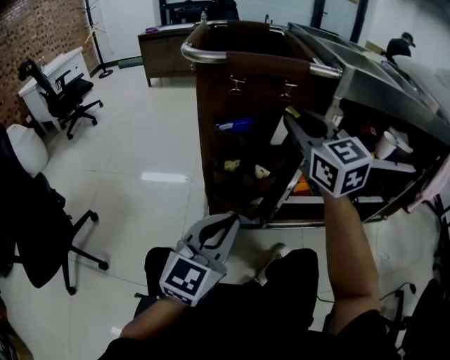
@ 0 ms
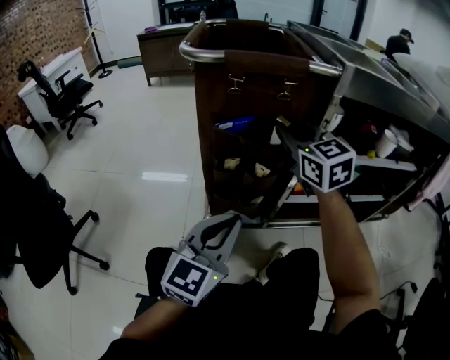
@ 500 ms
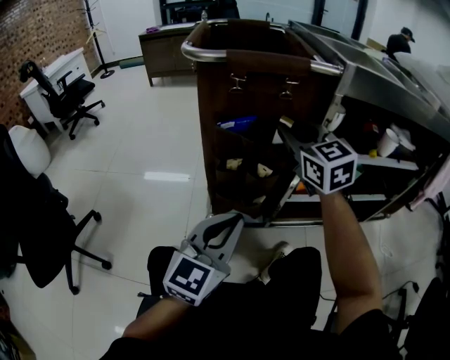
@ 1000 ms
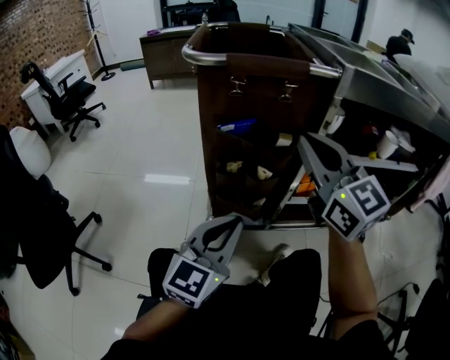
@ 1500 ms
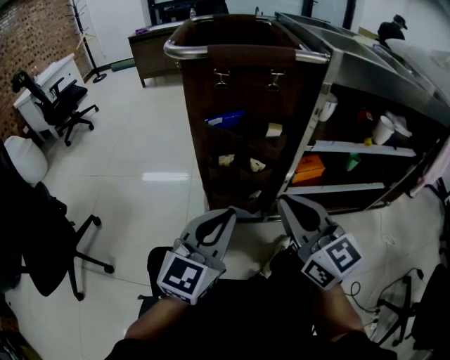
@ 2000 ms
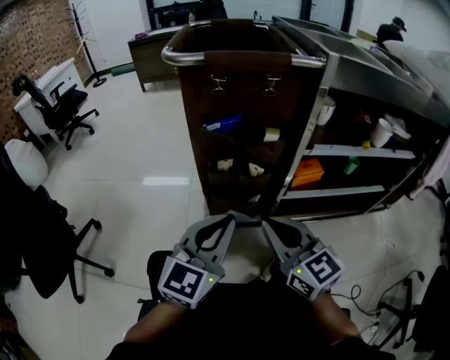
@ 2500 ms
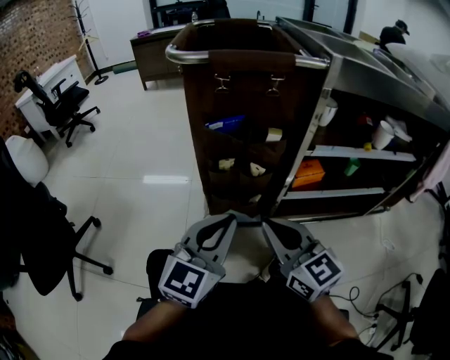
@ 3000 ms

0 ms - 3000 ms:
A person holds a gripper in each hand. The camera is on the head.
0 ms - 1500 ms: The right gripper heads backward, covering approximately 10 cm.
1500 ms - 3000 ms: The right gripper is displaced downward and backward by about 20 cm.

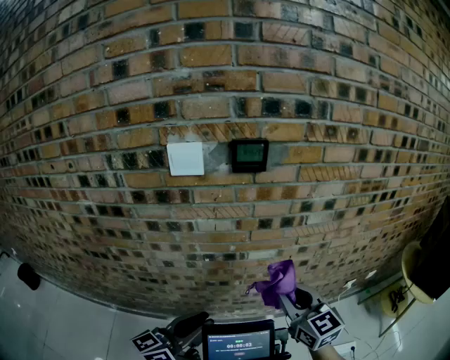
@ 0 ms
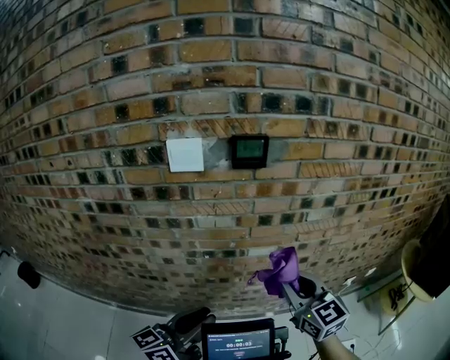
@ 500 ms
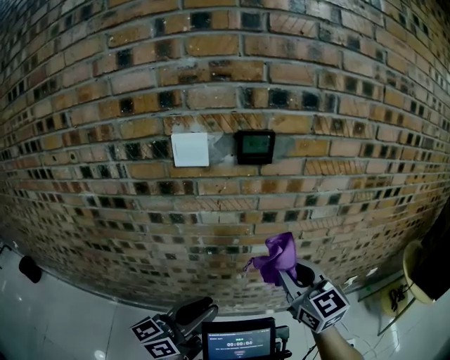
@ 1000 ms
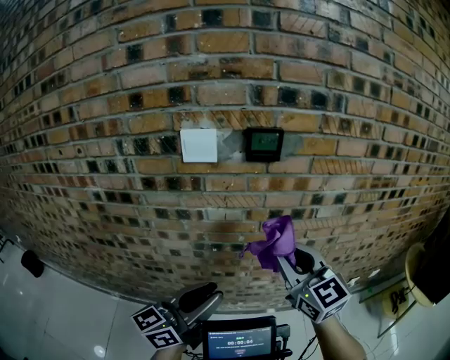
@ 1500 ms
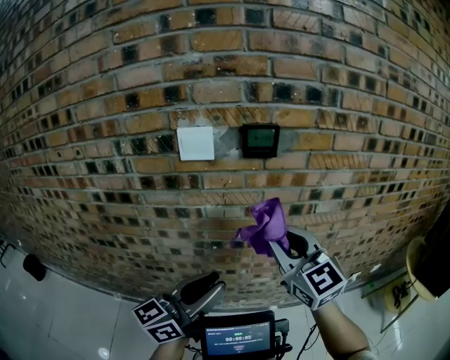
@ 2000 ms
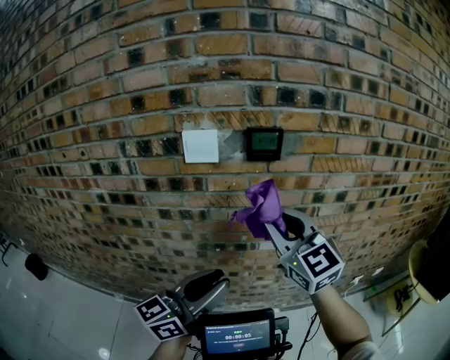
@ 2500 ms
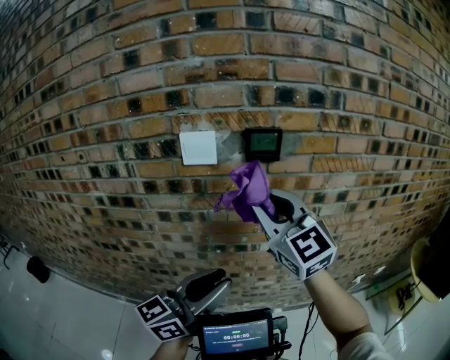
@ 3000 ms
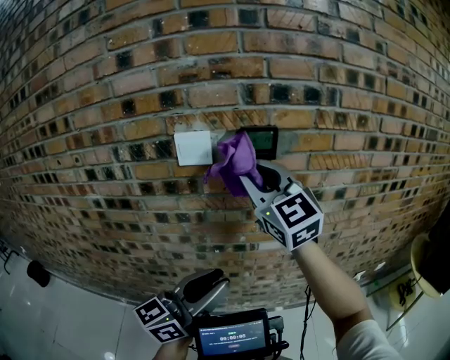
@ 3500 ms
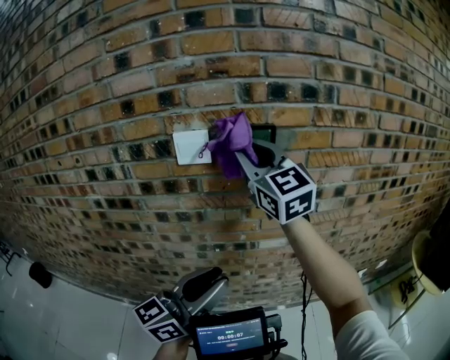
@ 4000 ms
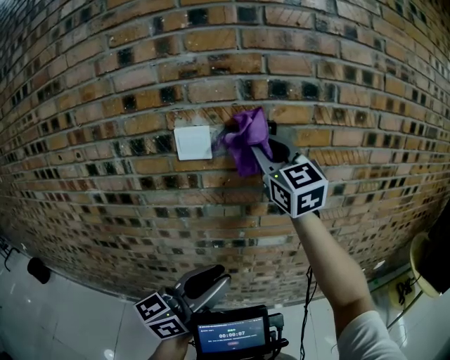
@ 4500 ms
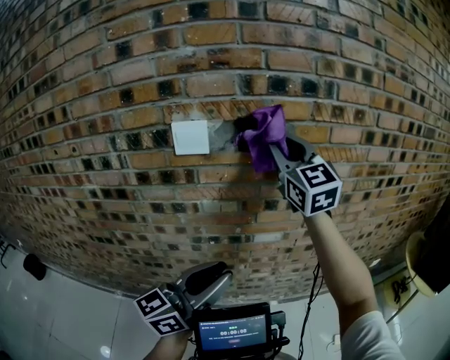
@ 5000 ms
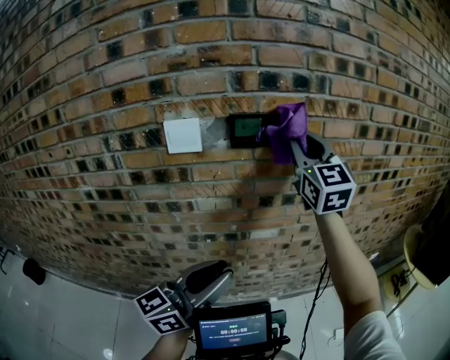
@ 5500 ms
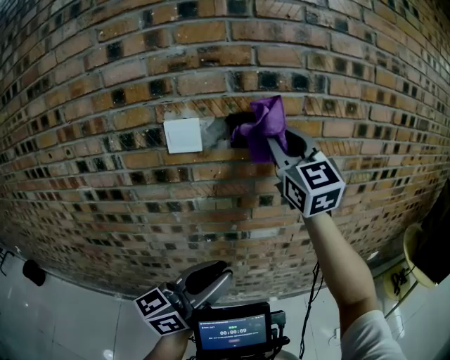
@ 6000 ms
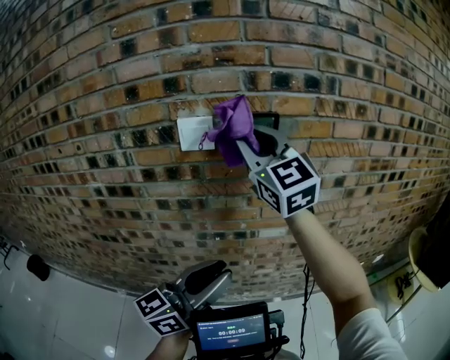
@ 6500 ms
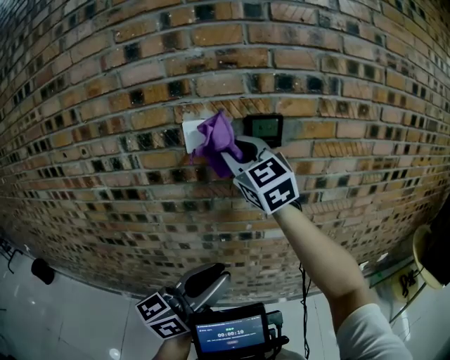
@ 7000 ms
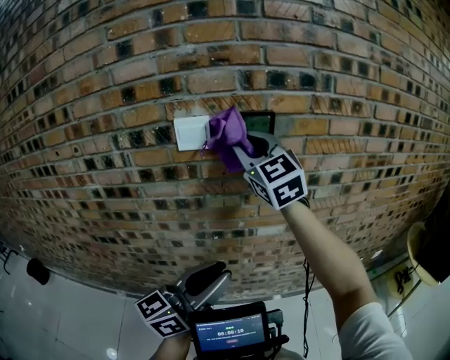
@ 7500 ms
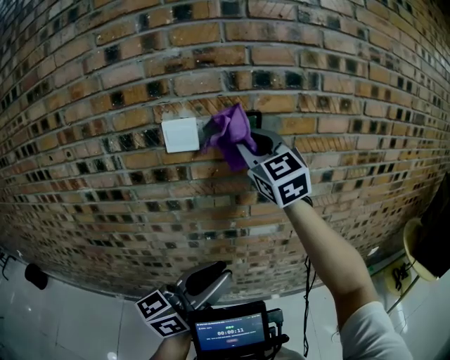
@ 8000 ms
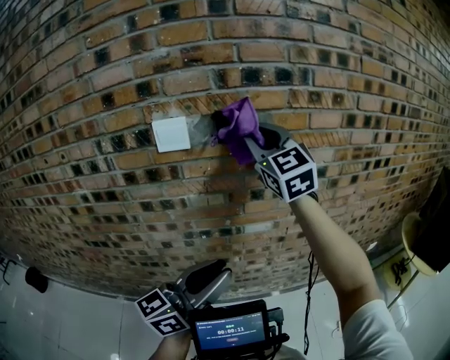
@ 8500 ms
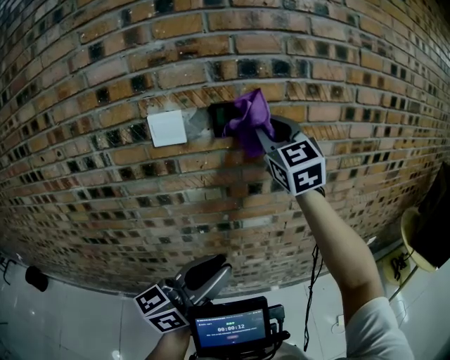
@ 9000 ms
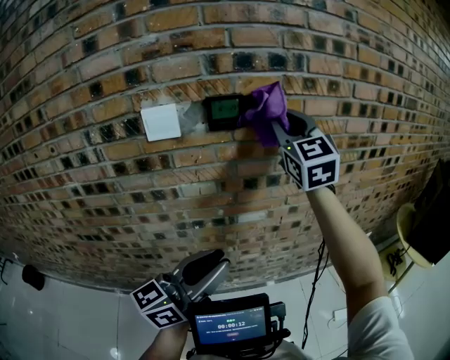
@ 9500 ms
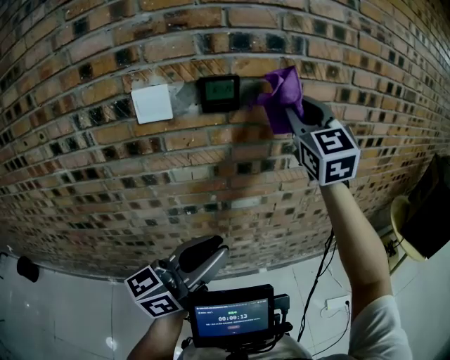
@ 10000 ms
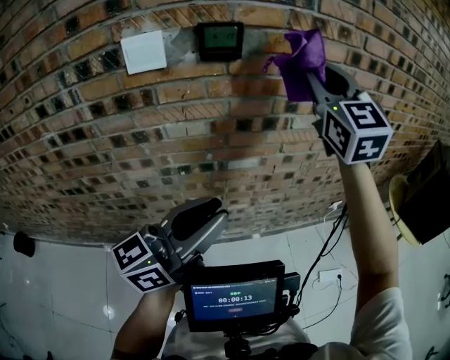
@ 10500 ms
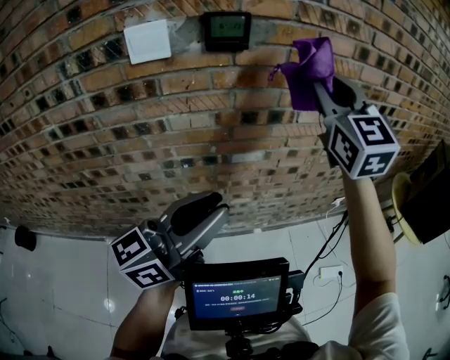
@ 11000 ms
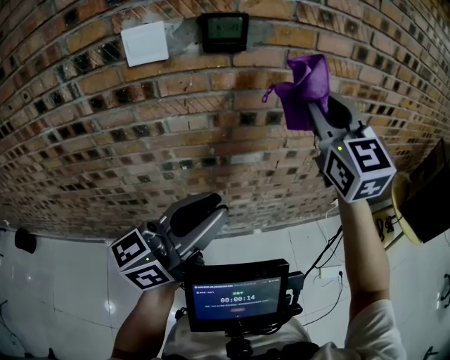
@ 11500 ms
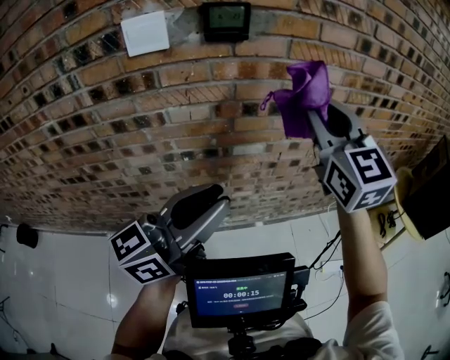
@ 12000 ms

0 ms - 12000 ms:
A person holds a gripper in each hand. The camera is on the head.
0 ms - 2000 ms: The right gripper is displaced upward and to the left by roughly 15 cm; the left gripper is displaced upward by about 5 cm.
2000 ms - 4000 ms: The right gripper goes some 20 cm upward, forward and to the left.
4000 ms - 6000 ms: The right gripper is displaced to the right by approximately 10 cm.
6000 ms - 8000 ms: The right gripper moves to the left, about 5 cm.
8000 ms - 10000 ms: The right gripper heads to the right, covering roughly 15 cm.
10000 ms - 12000 ms: The right gripper shifts some 10 cm downward and backward.

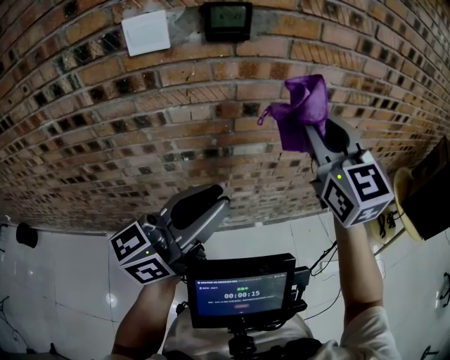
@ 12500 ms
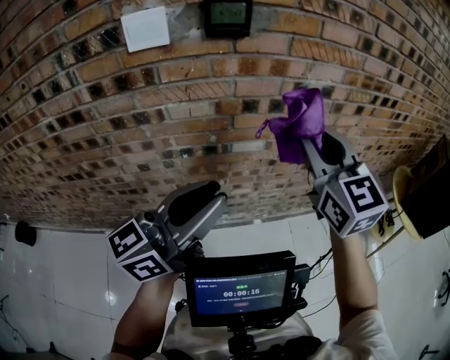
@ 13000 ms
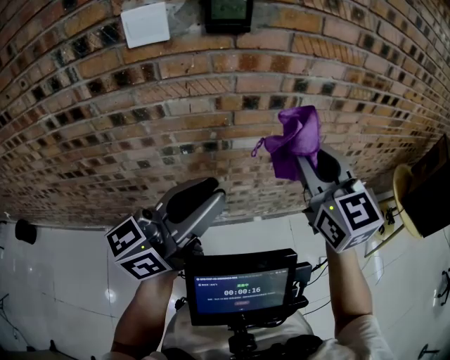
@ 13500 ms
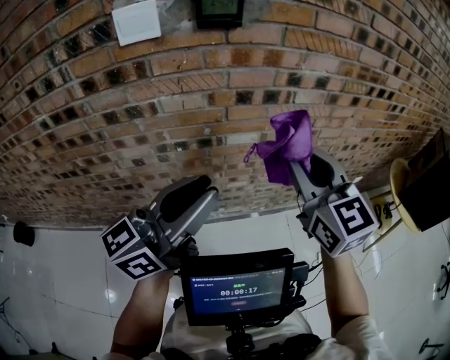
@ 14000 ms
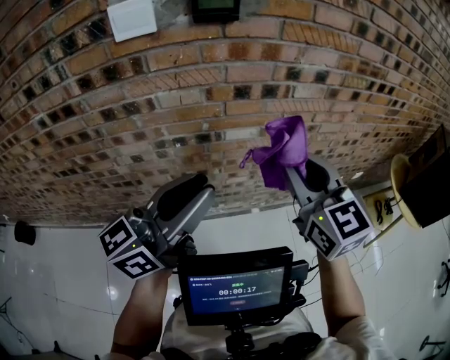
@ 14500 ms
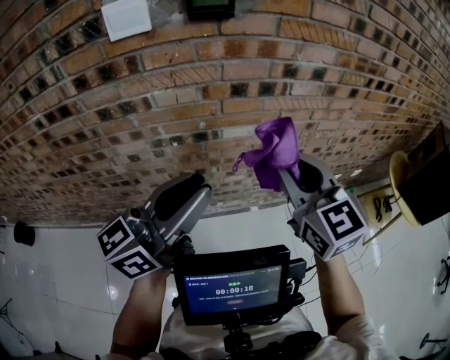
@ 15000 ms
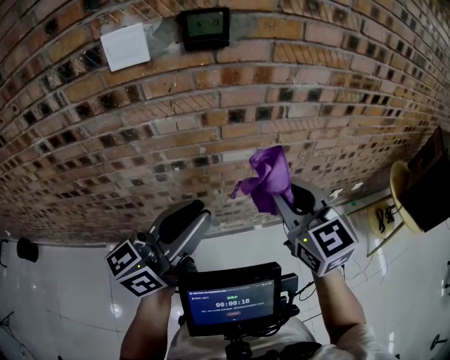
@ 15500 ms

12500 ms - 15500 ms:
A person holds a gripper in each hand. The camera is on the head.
12500 ms - 14000 ms: The right gripper heads downward and backward, covering roughly 10 cm.
14000 ms - 15500 ms: The grippers stay close to where they were, moving slightly.

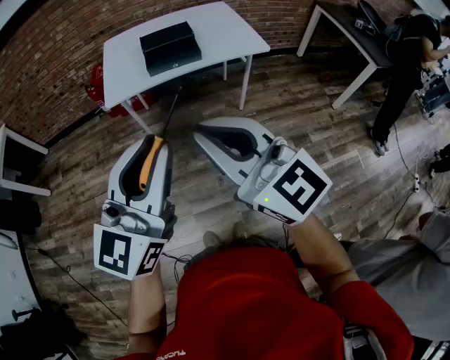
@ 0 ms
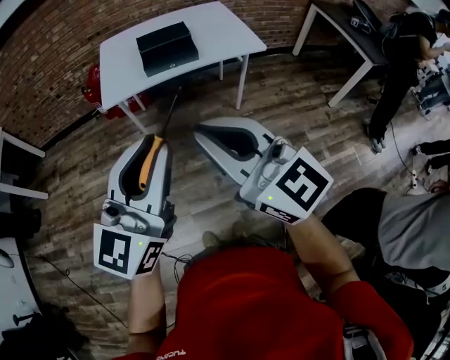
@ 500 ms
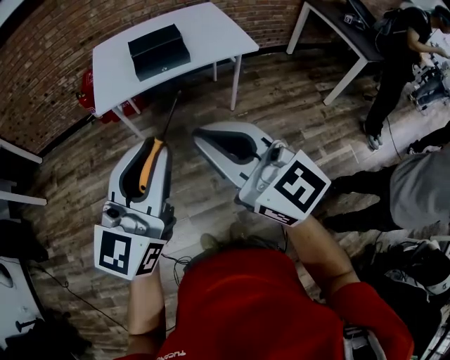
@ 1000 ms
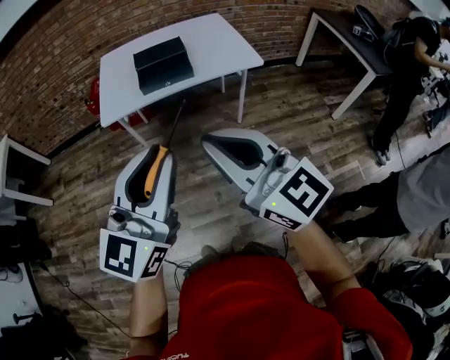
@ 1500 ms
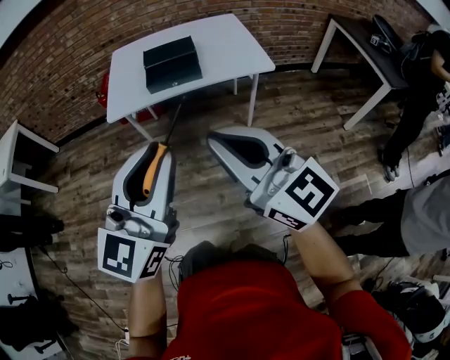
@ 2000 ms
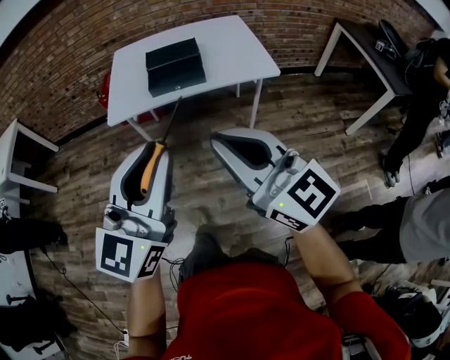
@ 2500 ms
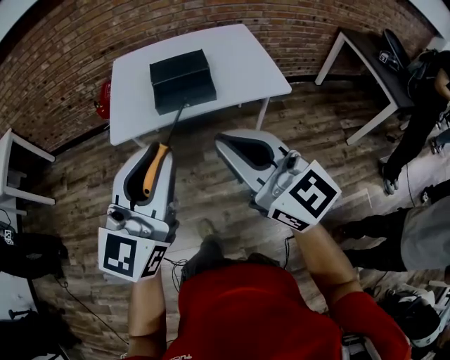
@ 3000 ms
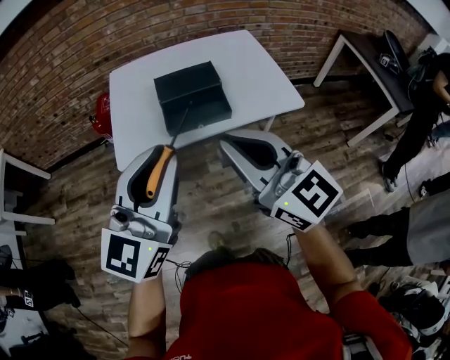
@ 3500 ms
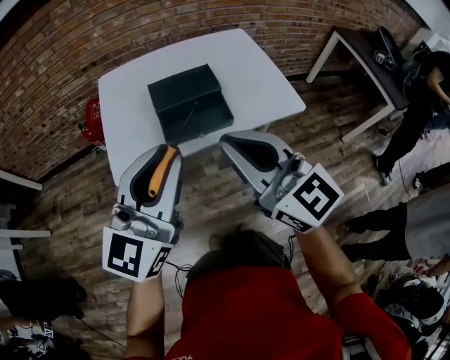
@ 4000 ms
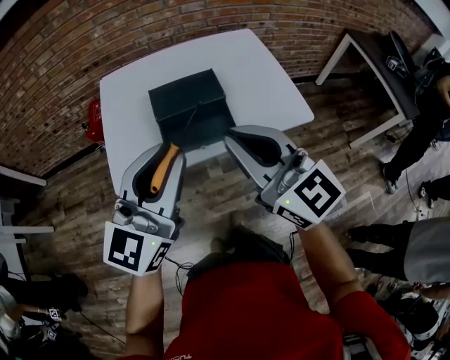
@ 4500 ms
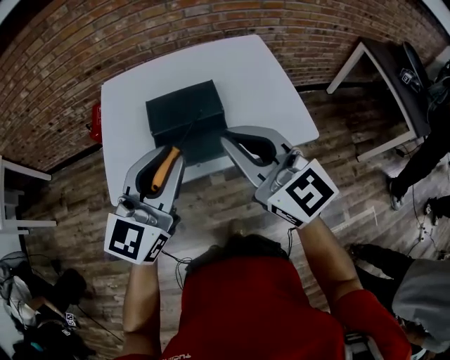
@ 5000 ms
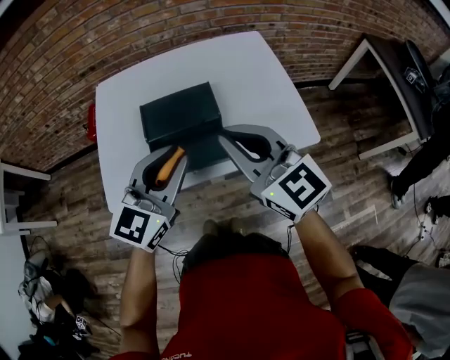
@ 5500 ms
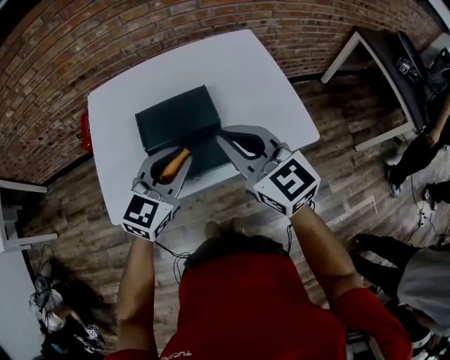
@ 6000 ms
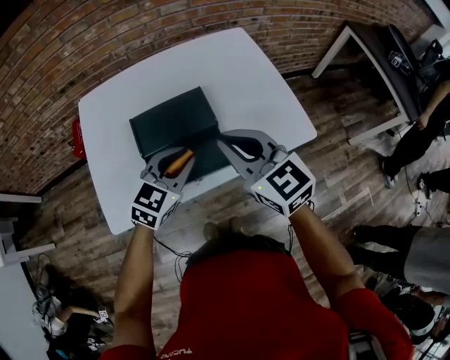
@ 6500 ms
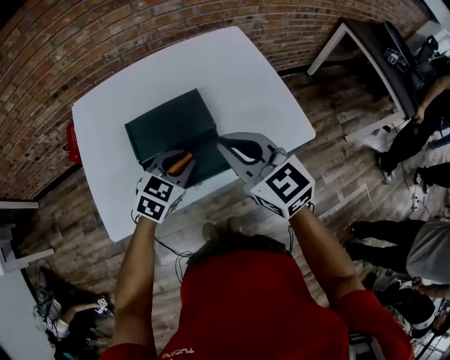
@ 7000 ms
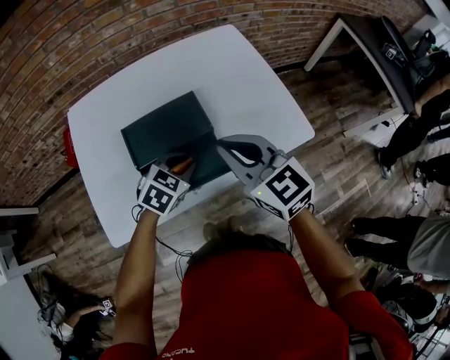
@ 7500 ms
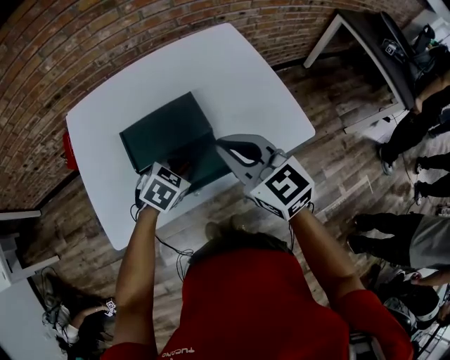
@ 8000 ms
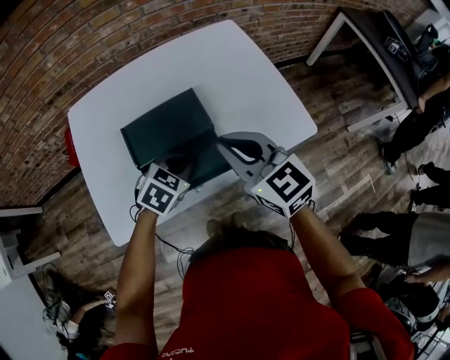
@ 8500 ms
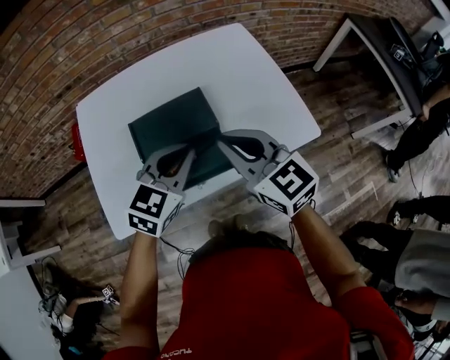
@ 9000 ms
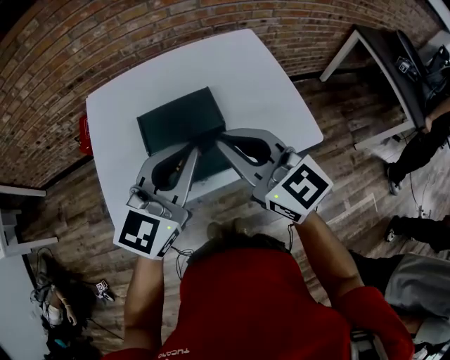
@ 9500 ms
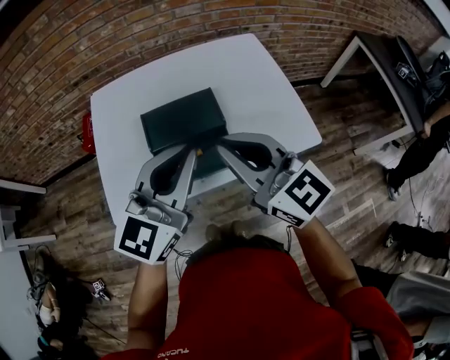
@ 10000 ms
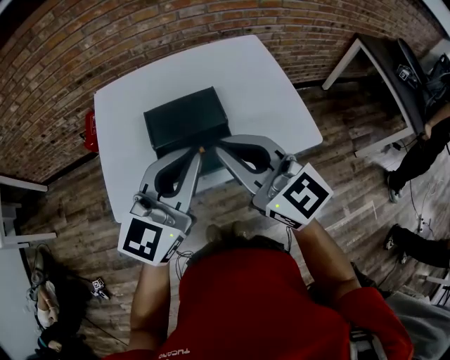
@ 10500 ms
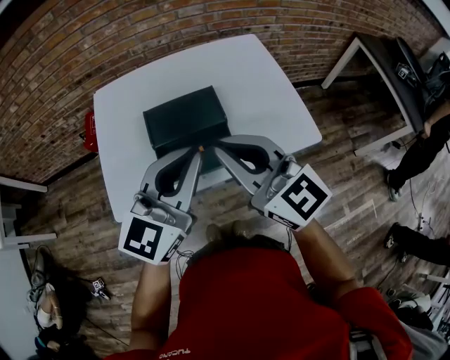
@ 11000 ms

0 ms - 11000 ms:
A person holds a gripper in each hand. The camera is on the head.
0 ms - 2000 ms: Both grippers move to the right, approximately 10 cm.
2000 ms - 3500 ms: Both grippers move forward, roughly 25 cm.
3500 ms - 5500 ms: The left gripper travels forward and downward by about 25 cm; the right gripper moves forward, some 25 cm.
5500 ms - 7500 ms: The left gripper is displaced downward and forward by some 20 cm, and tilts its fingers some 40 degrees downward, while the right gripper is displaced downward and forward by some 10 cm.
7500 ms - 9000 ms: The left gripper moves upward, roughly 15 cm, and rotates about 20 degrees.
9000 ms - 11000 ms: The grippers both shift upward and backward by approximately 15 cm. The left gripper changes its angle by roughly 30 degrees.
